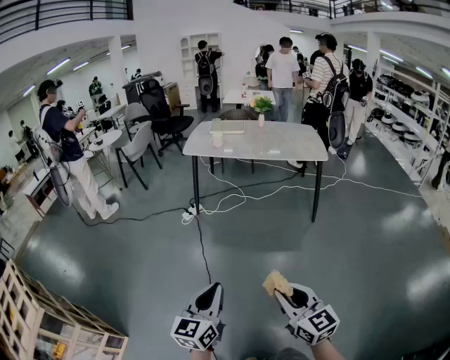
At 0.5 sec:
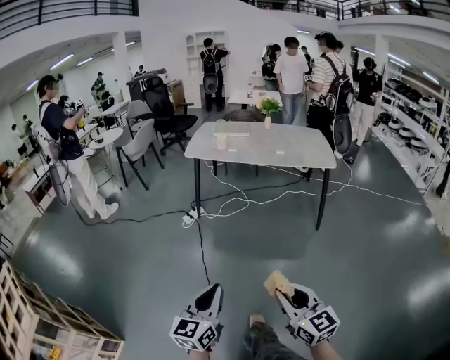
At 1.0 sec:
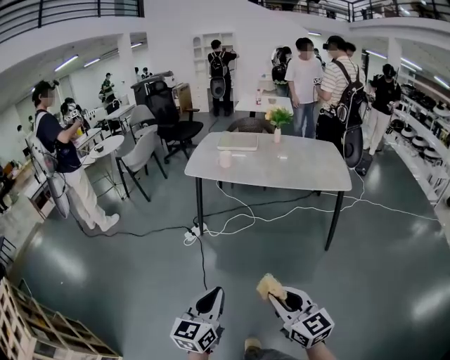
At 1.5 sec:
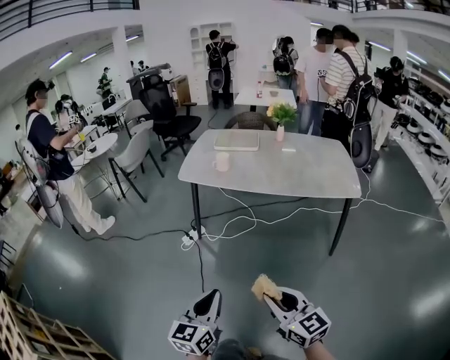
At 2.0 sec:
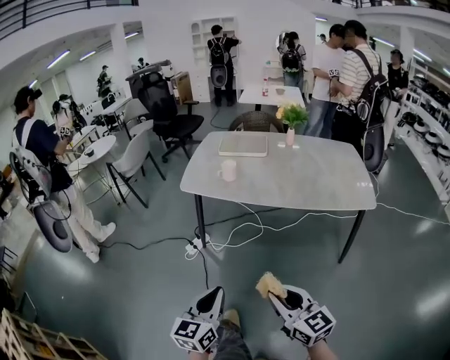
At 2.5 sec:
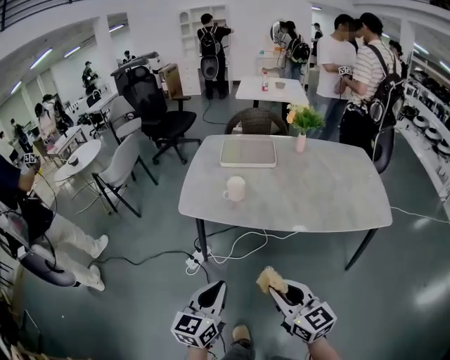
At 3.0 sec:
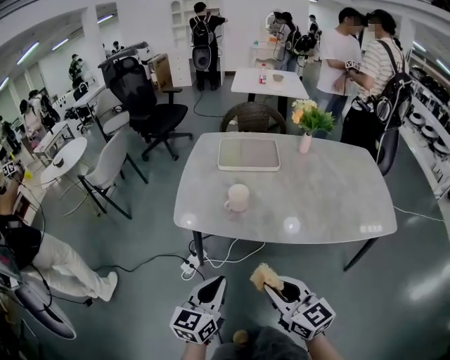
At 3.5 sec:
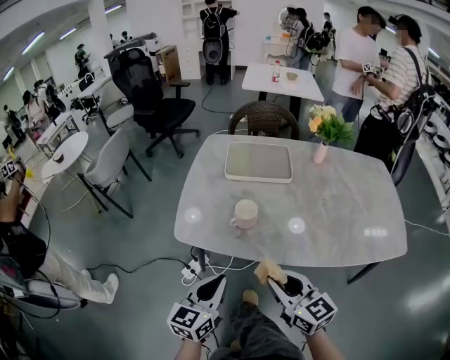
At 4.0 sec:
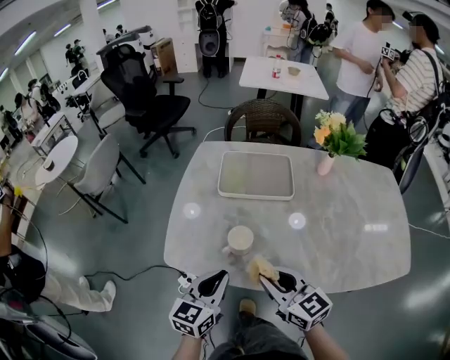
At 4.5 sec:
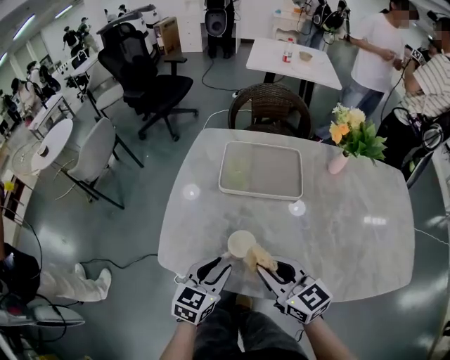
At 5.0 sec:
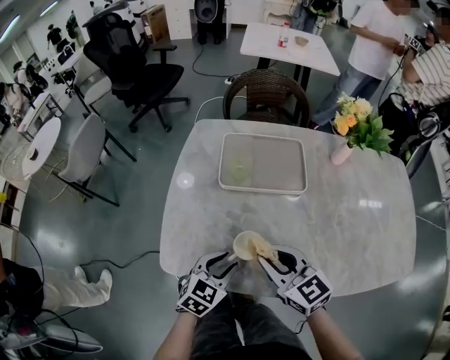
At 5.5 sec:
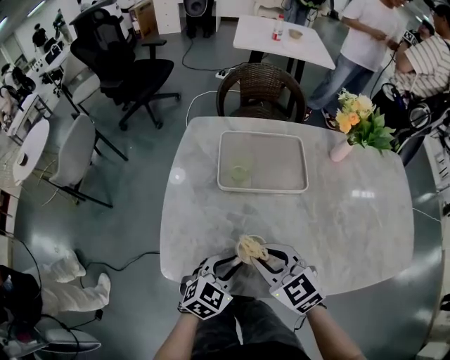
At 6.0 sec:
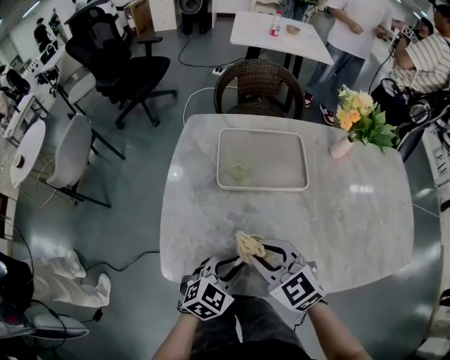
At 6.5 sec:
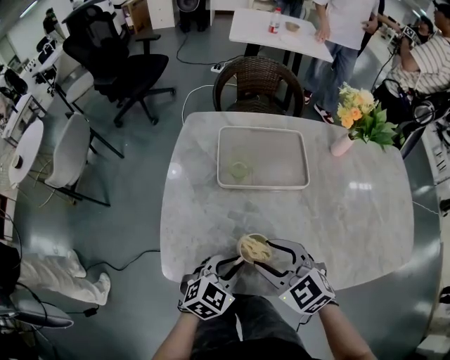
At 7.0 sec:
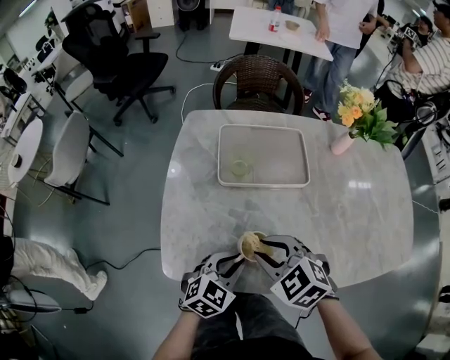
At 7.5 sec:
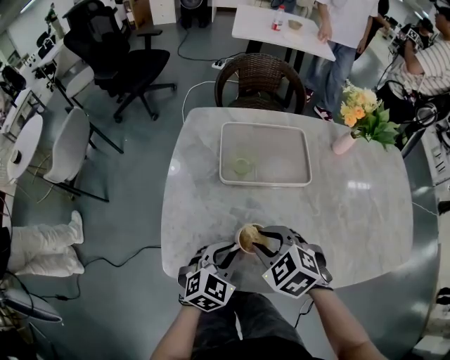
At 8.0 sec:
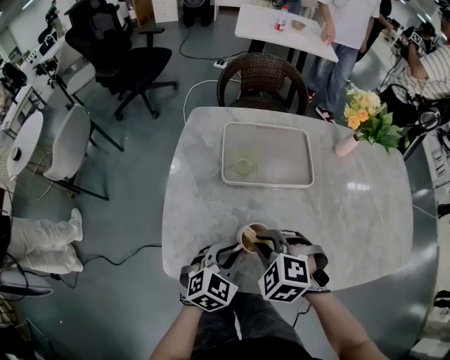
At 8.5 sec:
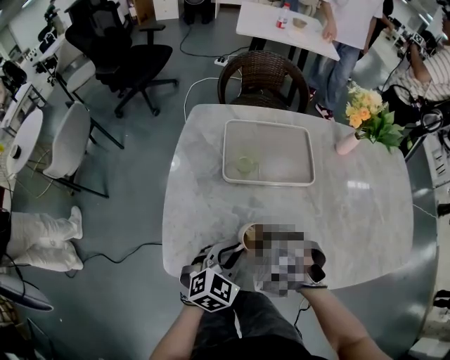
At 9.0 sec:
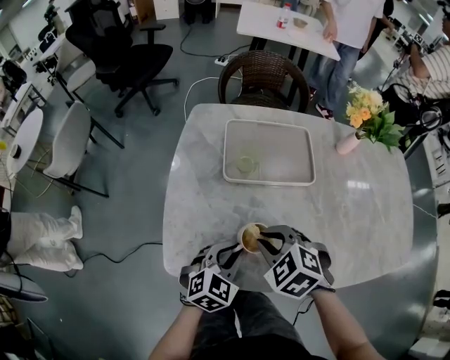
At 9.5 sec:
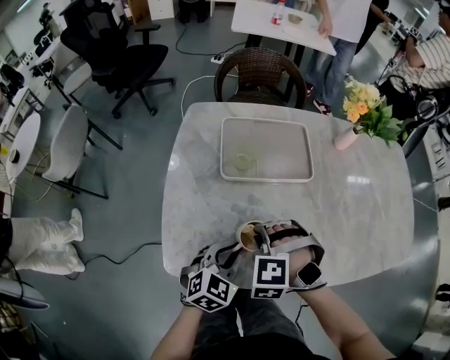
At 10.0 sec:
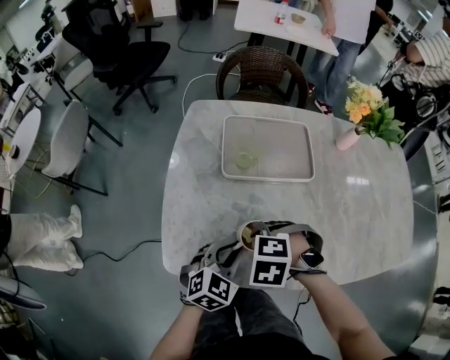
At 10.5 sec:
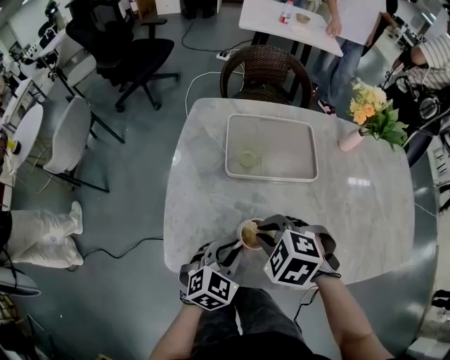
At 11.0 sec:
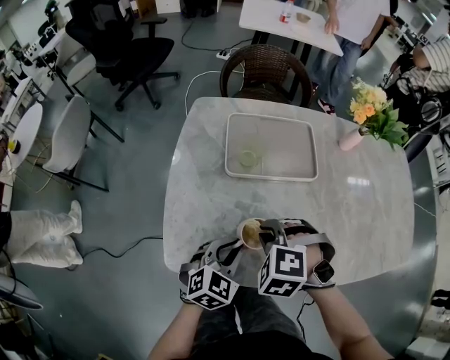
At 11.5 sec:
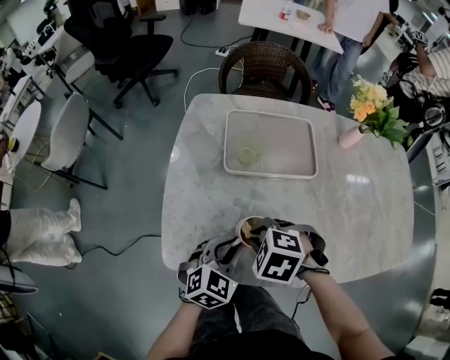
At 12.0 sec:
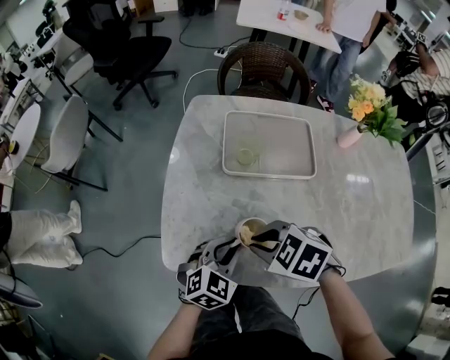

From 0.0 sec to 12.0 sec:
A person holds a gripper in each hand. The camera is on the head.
From 0.0 sec to 2.0 sec: Both grippers are carried forward, about 50 cm.
From 2.0 sec to 4.0 sec: Both grippers are carried forward, approximately 50 cm.
From 4.0 sec to 6.0 sec: The left gripper is displaced downward and forward by approximately 15 cm, and swivels roughly 40 degrees; the right gripper heads forward and to the left, covering approximately 15 cm, and turns by about 30 degrees.
From 6.0 sec to 8.0 sec: The right gripper swivels approximately 40 degrees, and opens, then closes again.
From 8.0 sec to 10.0 sec: The right gripper turns by some 20 degrees.
From 10.0 sec to 12.0 sec: The right gripper swivels about 30 degrees.

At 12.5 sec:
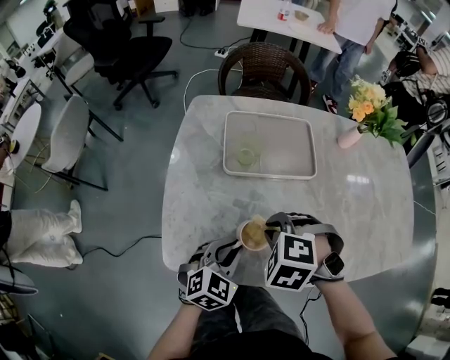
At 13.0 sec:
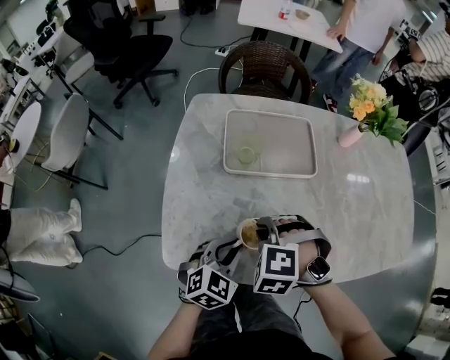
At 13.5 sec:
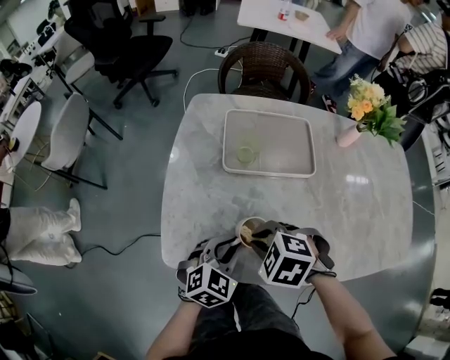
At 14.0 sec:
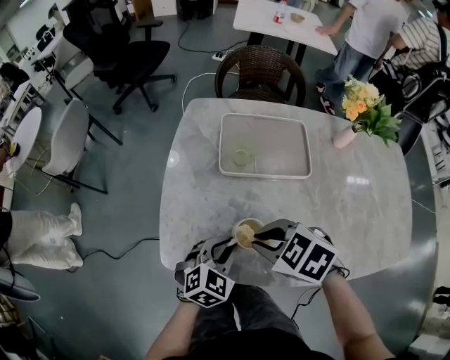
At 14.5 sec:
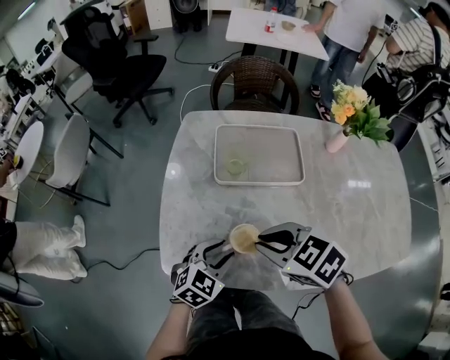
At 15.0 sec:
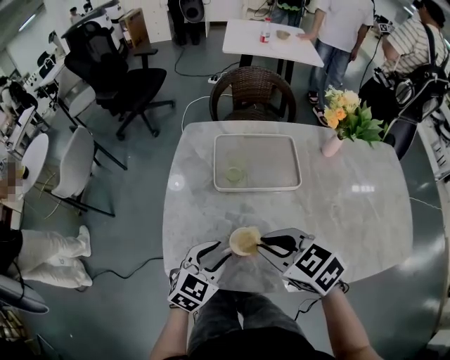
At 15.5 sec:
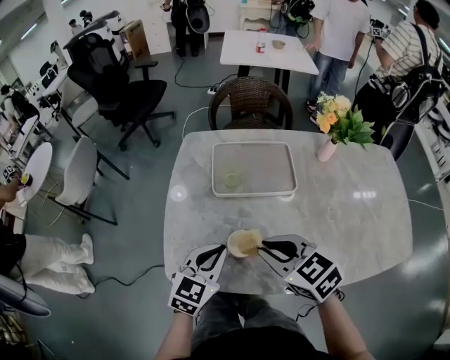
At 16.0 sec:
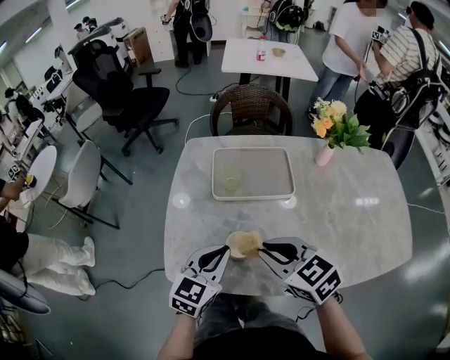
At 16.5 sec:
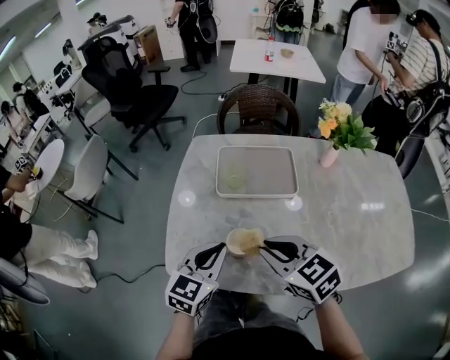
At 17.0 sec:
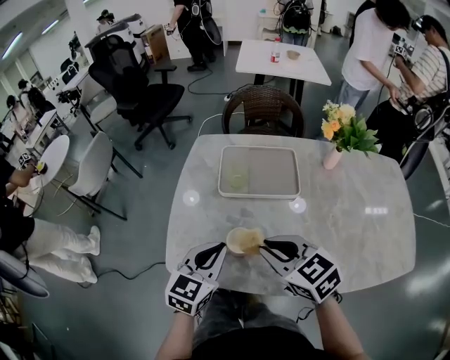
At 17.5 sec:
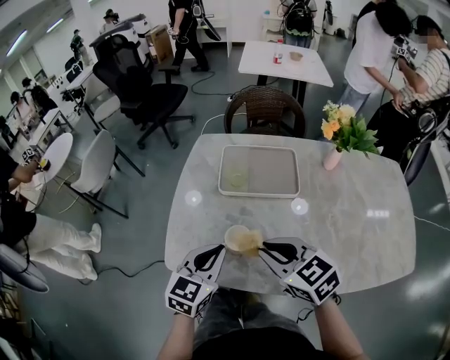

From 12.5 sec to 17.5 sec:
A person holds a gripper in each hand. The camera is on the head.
From 12.5 sec to 15.0 sec: The left gripper opens up. Meanwhile the right gripper travels upward by roughly 10 cm, and tips its fingers upward by approximately 30 degrees.
From 15.0 sec to 17.5 sec: The left gripper moves upward, approximately 5 cm, changes its angle by about 20 degrees, and closes up; the right gripper ends up about 5 cm from where it was.

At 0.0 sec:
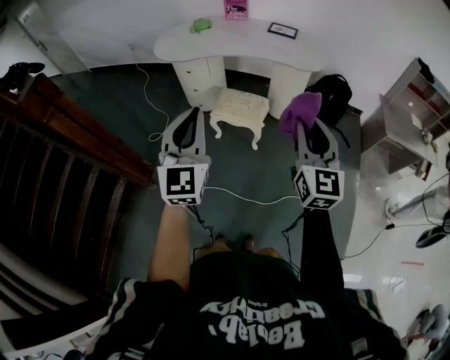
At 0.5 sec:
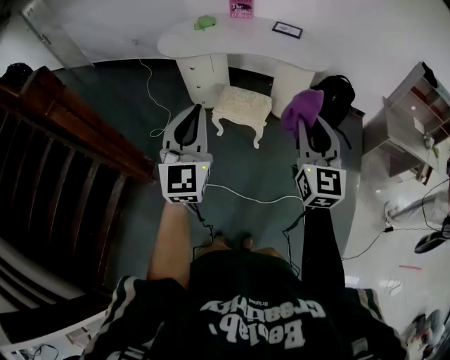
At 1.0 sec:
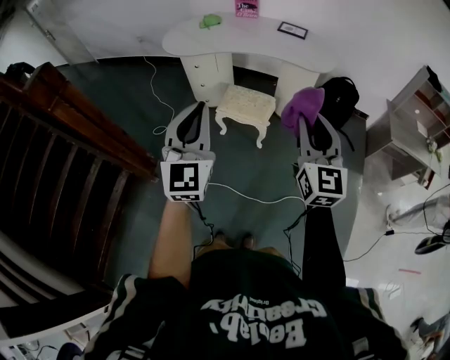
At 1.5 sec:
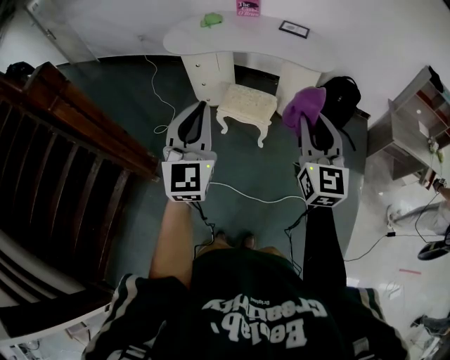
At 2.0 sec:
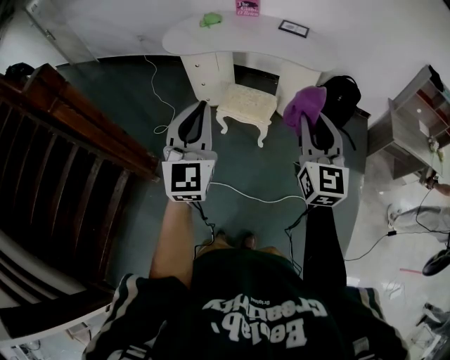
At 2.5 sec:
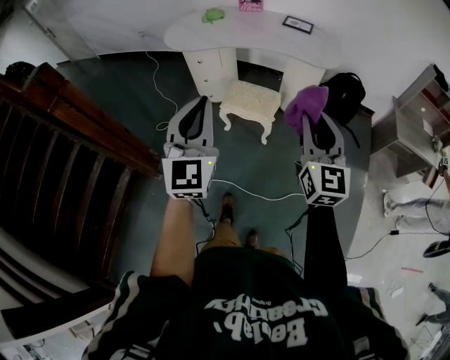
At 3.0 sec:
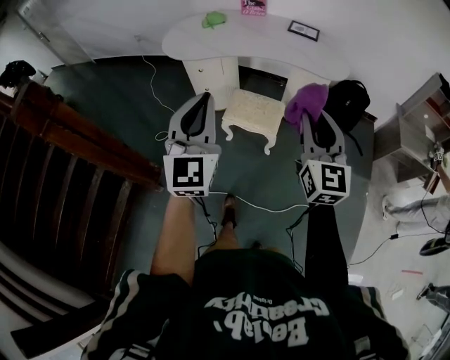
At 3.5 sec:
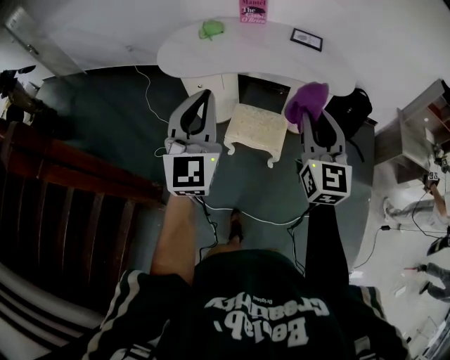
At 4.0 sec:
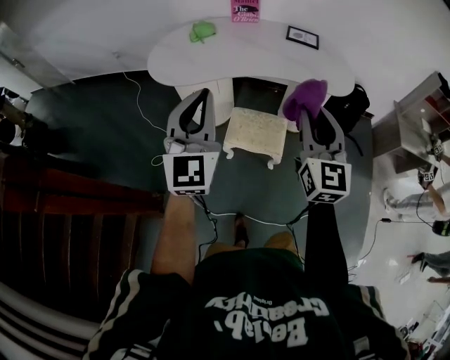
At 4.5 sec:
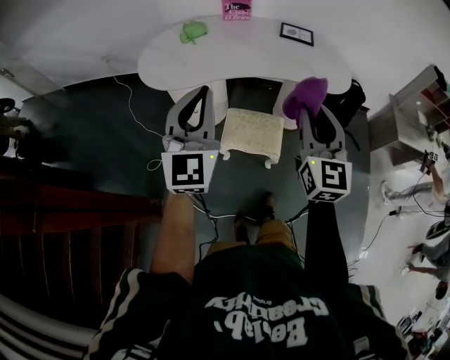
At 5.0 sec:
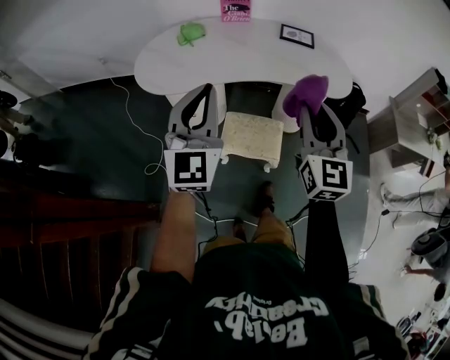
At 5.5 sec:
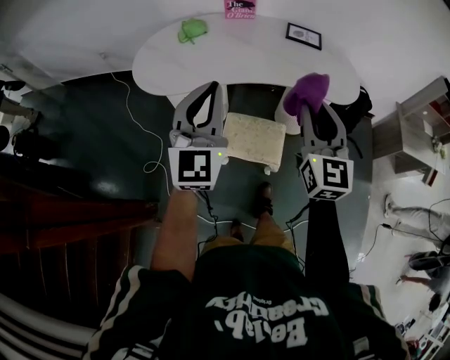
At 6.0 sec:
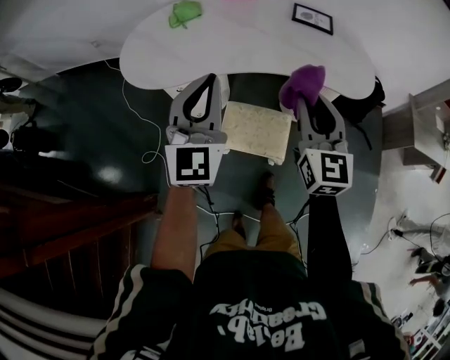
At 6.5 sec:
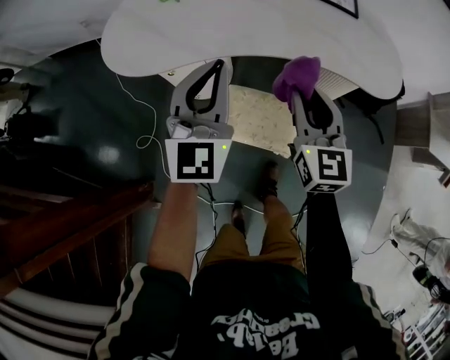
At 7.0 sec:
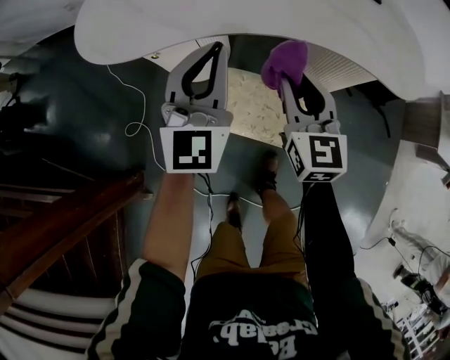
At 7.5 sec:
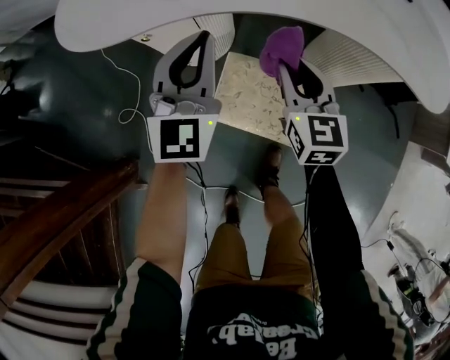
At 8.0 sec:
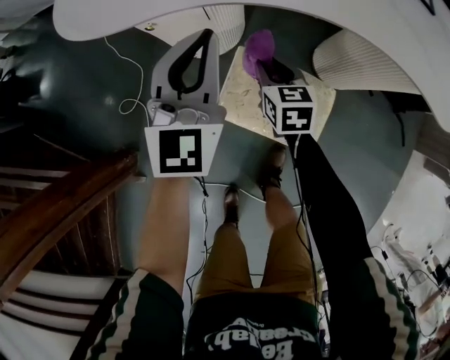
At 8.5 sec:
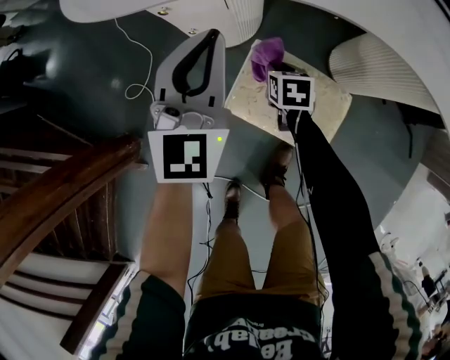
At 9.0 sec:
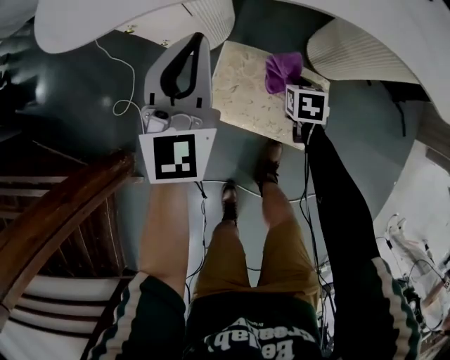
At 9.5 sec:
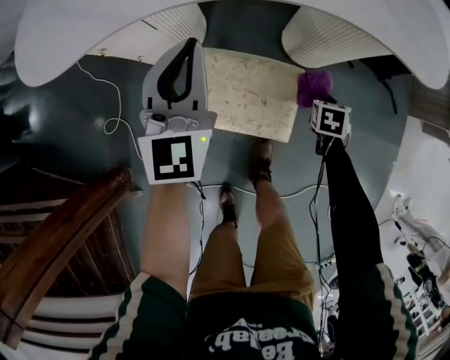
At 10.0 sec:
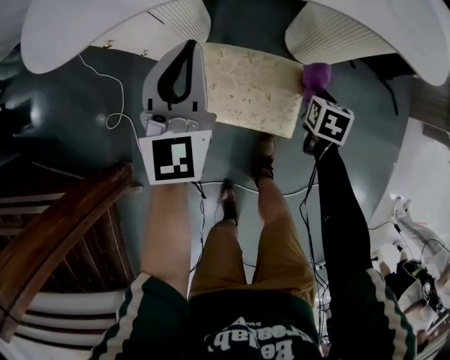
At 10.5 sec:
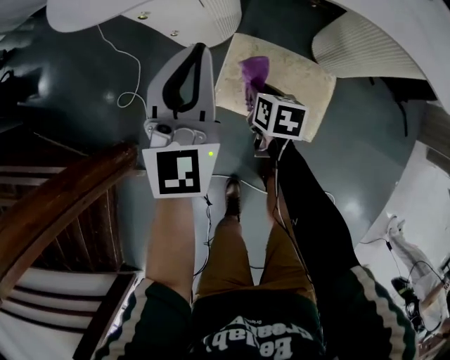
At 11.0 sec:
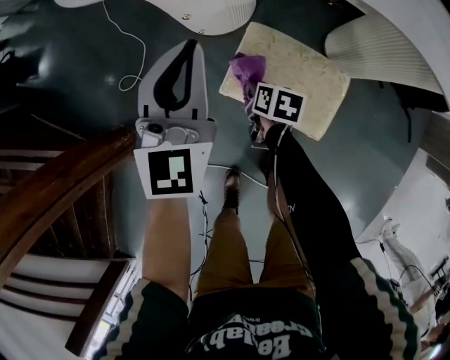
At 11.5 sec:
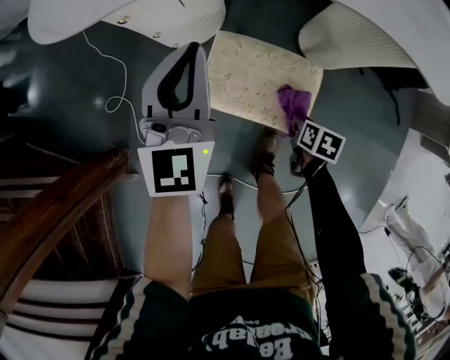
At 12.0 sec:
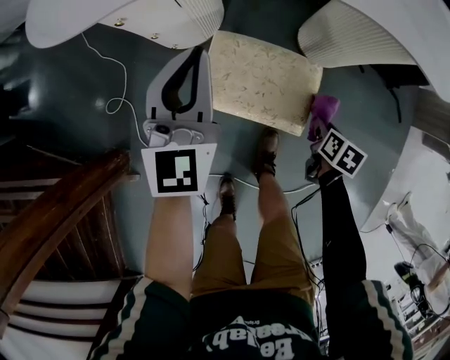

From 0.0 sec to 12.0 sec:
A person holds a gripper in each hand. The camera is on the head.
From 0.0 sec to 2.0 sec: There are only small adjustments of the grippers.
From 2.0 sec to 4.0 sec: The right gripper travels forward and to the left by about 30 cm. Meanwhile the left gripper heads forward, covering approximately 30 cm.
From 4.0 sec to 6.0 sec: The grippers both shift forward and downward by some 20 cm.
From 6.0 sec to 8.0 sec: The two grippers go roughly 40 cm downward and forward. The right gripper tilts its fingers roughly 30 degrees downward.
From 8.0 sec to 10.0 sec: The left gripper changes place by roughly 10 cm; the right gripper moves approximately 30 cm, and rotates approximately 40 degrees.
